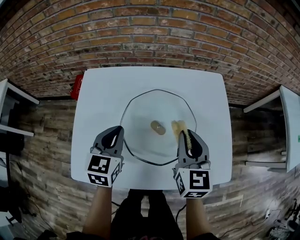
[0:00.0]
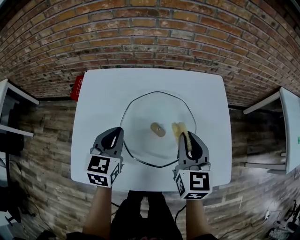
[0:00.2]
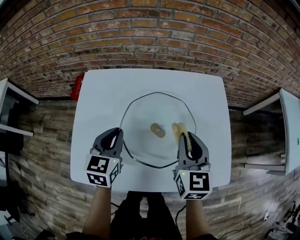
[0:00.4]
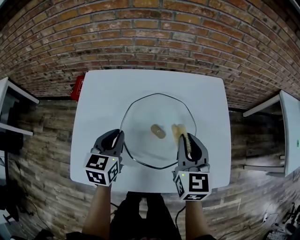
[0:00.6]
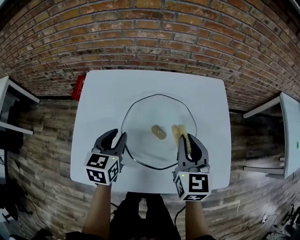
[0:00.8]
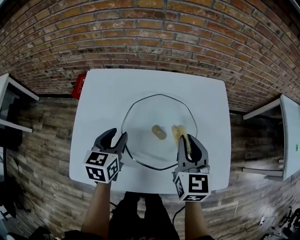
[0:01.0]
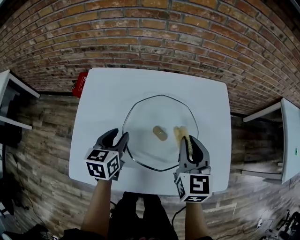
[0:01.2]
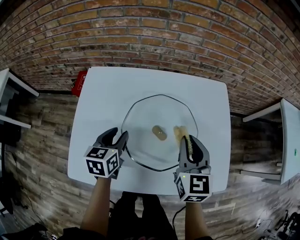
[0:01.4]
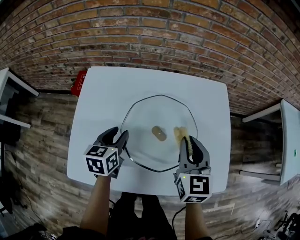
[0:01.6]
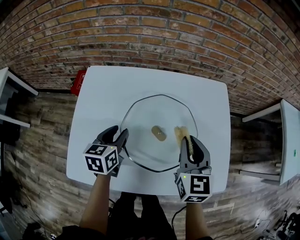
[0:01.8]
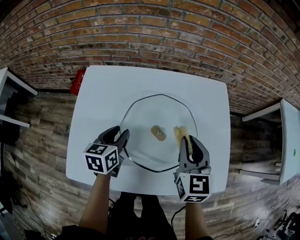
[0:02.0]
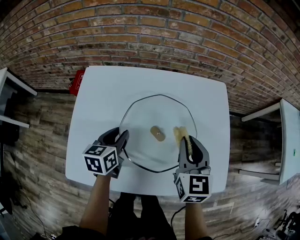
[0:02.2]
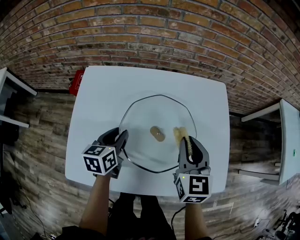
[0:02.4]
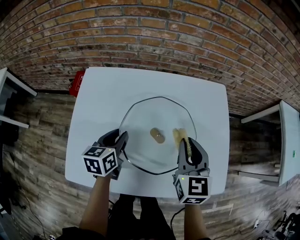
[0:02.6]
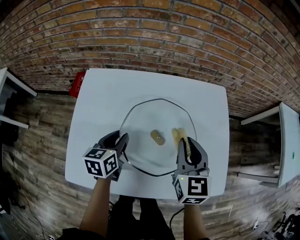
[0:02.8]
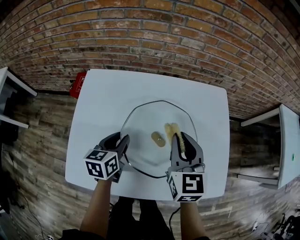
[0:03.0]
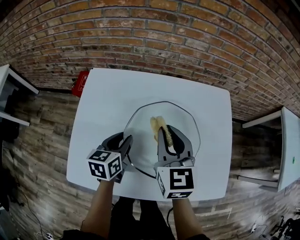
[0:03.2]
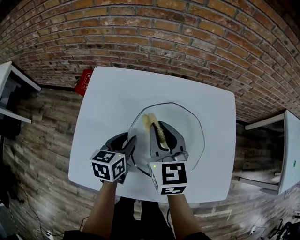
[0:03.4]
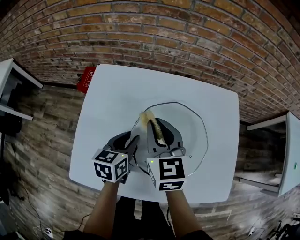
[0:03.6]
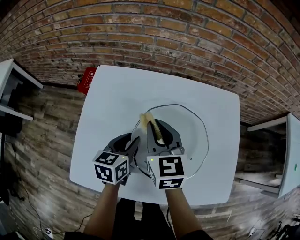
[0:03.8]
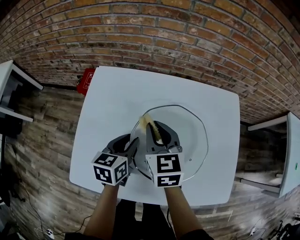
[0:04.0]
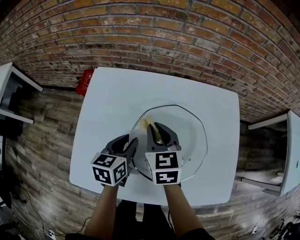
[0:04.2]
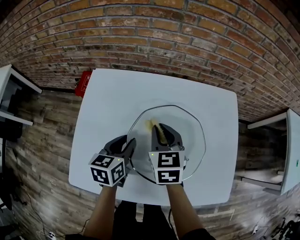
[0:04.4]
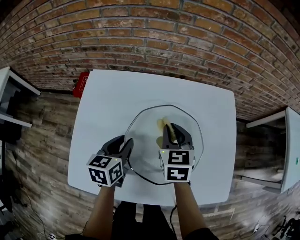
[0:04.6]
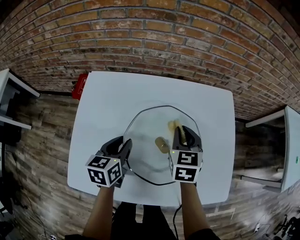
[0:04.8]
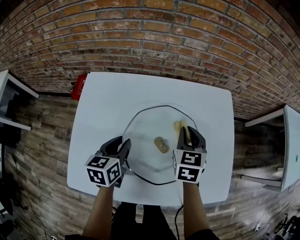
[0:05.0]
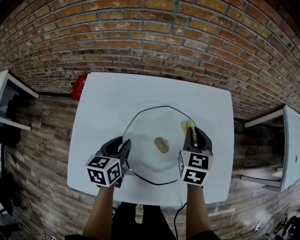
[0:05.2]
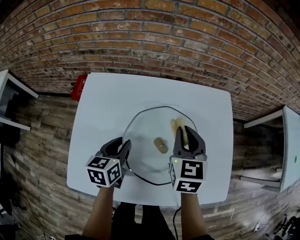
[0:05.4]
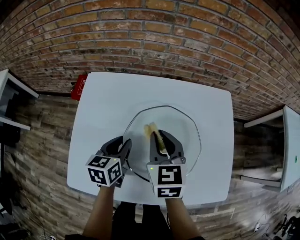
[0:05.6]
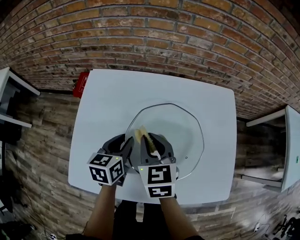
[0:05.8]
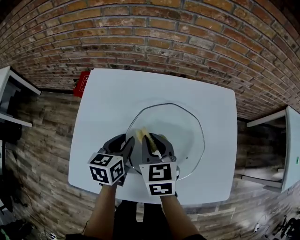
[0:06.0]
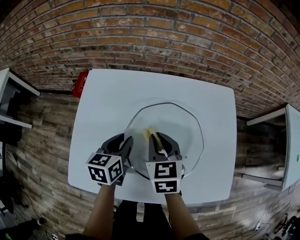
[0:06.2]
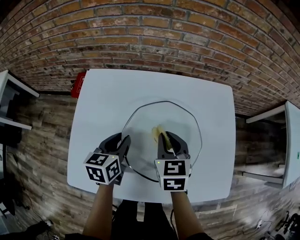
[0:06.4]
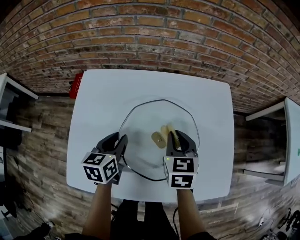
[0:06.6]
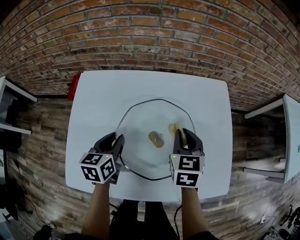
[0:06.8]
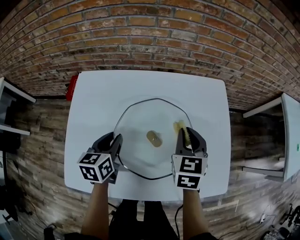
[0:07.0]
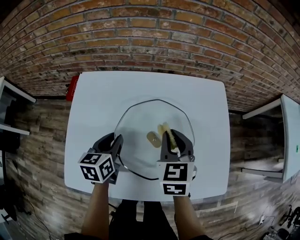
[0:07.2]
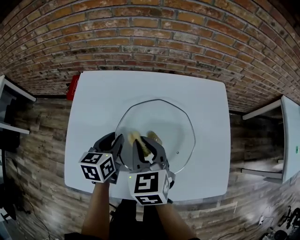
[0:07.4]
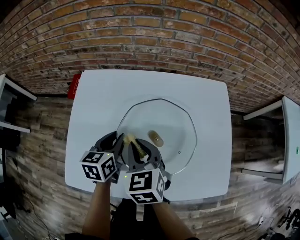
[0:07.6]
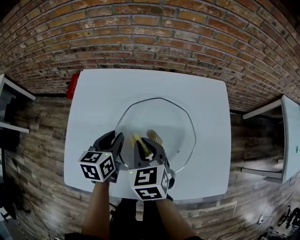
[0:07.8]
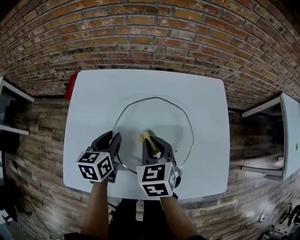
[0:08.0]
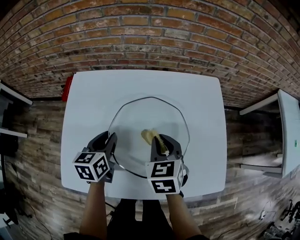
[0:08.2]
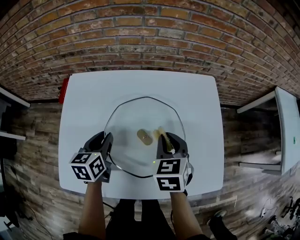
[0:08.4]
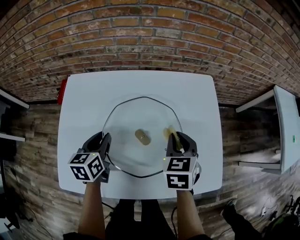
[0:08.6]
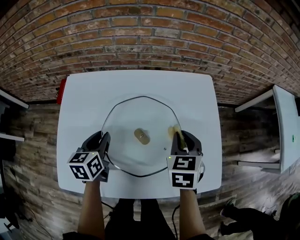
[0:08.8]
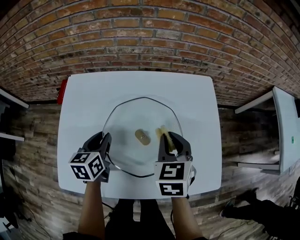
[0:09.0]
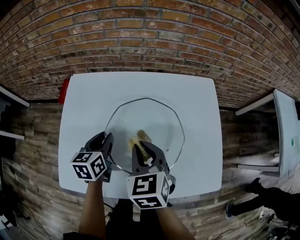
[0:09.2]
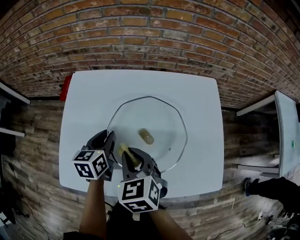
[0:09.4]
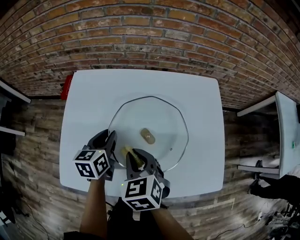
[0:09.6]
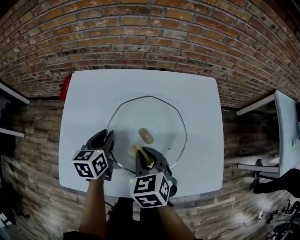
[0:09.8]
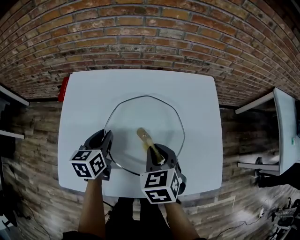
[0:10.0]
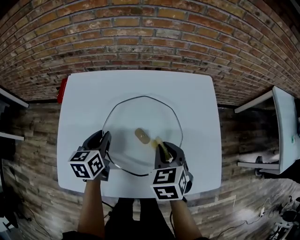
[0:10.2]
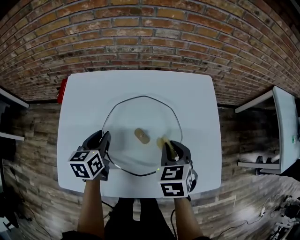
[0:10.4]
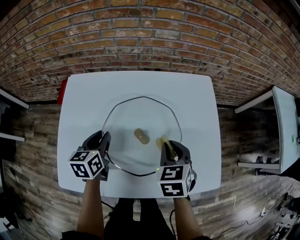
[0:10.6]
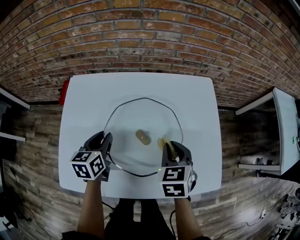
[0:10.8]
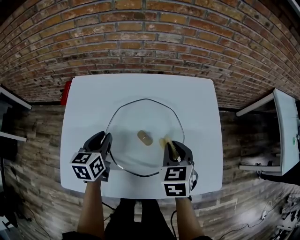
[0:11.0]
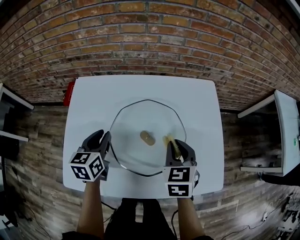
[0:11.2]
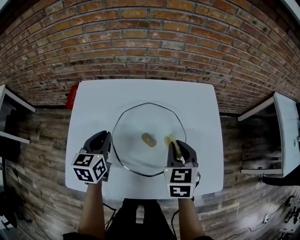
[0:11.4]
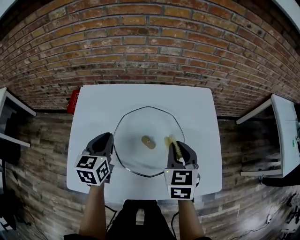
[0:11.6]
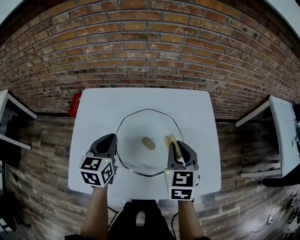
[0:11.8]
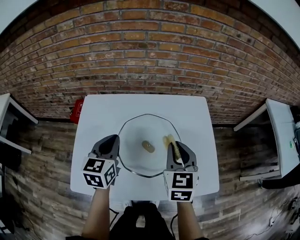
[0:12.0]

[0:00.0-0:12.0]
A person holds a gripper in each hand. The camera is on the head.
0:00.0 to 0:01.6: The left gripper is displaced downward by roughly 5 cm, swivels some 20 degrees, and opens up.
0:01.6 to 0:03.0: The grippers make only small movements.
0:03.0 to 0:04.4: The right gripper goes some 15 cm to the left, downward and forward.
0:04.4 to 0:06.0: The right gripper moves some 15 cm to the right and comes back.
0:06.0 to 0:07.6: The right gripper goes to the right and returns, about 15 cm each way.
0:07.6 to 0:09.0: The right gripper travels to the right by roughly 15 cm.
0:09.0 to 0:10.4: The right gripper reaches roughly 15 cm to the left, then returns.
0:10.4 to 0:12.0: The grippers both shift upward by some 15 cm. The left gripper swivels about 20 degrees, and closes its fingers. The right gripper turns by approximately 30 degrees.

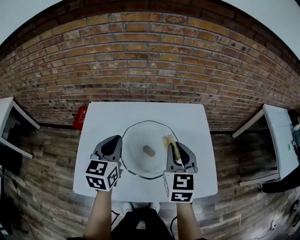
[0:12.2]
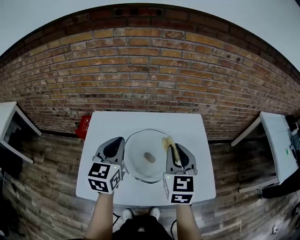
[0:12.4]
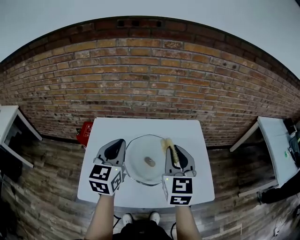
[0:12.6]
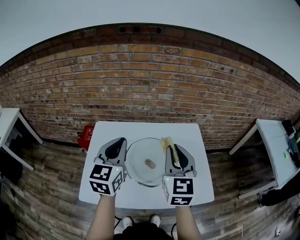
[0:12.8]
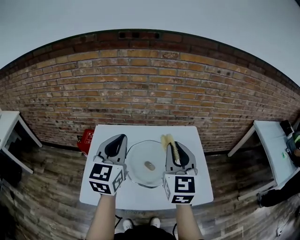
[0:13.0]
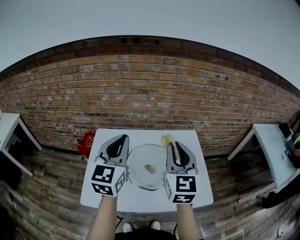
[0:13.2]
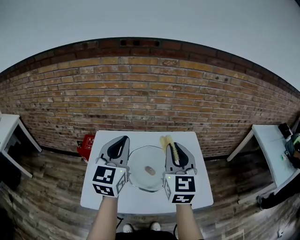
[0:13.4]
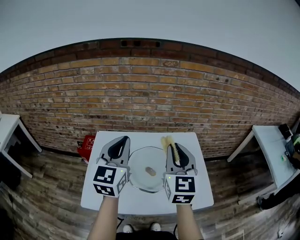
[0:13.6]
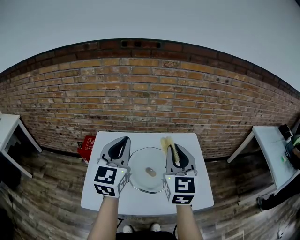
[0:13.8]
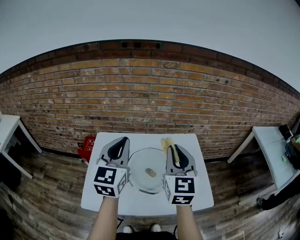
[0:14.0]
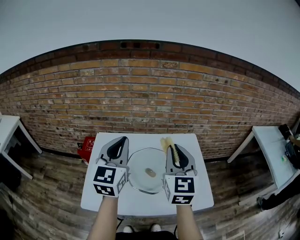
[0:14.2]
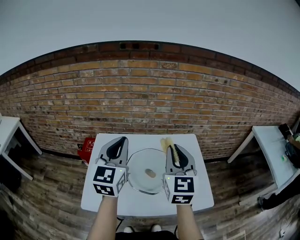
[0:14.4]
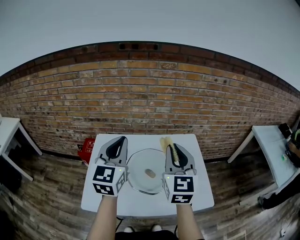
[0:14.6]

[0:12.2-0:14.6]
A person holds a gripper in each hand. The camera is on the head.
0:12.2 to 0:13.4: The grippers both shift upward by roughly 15 cm. The left gripper turns by about 20 degrees.
0:13.4 to 0:14.6: The two grippers keep their place.

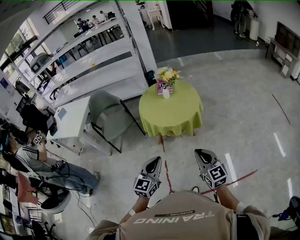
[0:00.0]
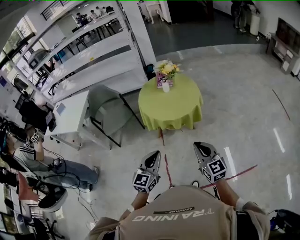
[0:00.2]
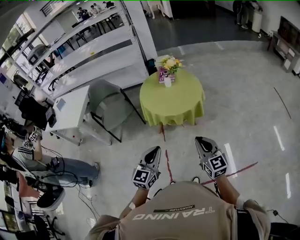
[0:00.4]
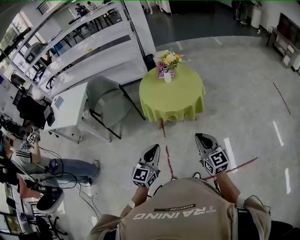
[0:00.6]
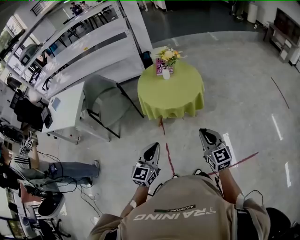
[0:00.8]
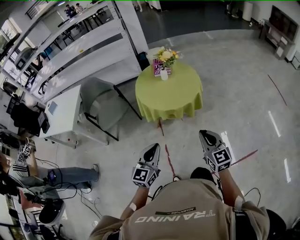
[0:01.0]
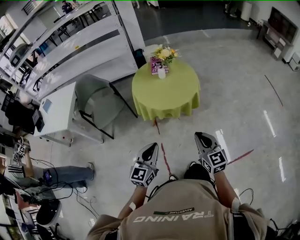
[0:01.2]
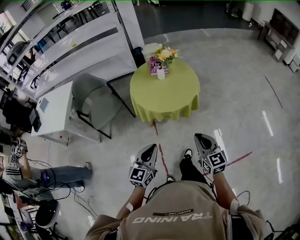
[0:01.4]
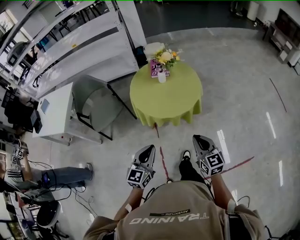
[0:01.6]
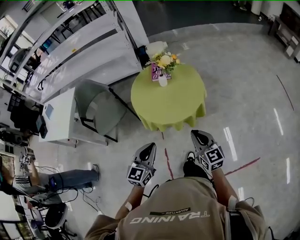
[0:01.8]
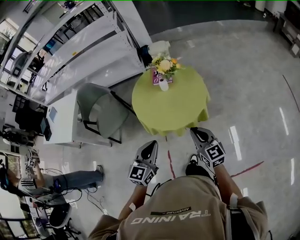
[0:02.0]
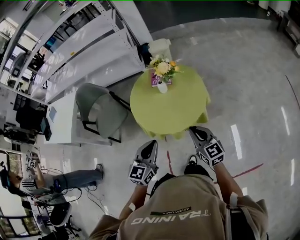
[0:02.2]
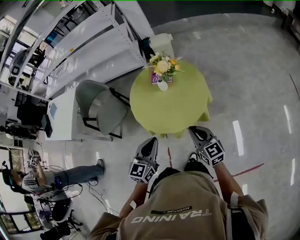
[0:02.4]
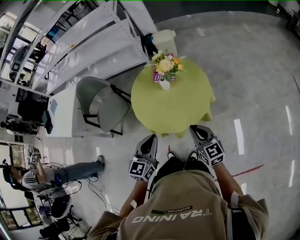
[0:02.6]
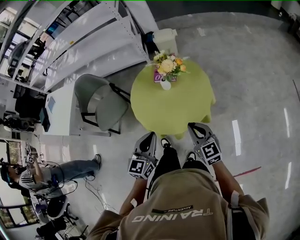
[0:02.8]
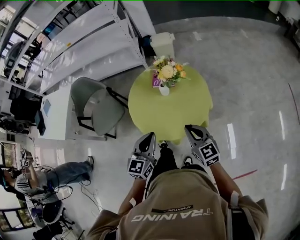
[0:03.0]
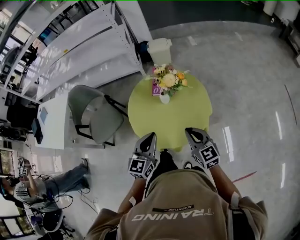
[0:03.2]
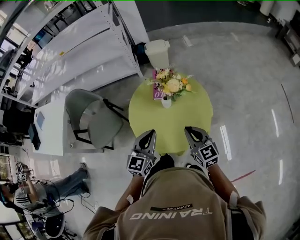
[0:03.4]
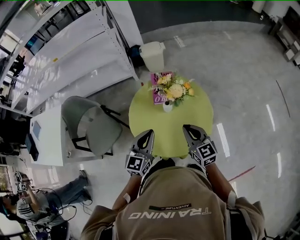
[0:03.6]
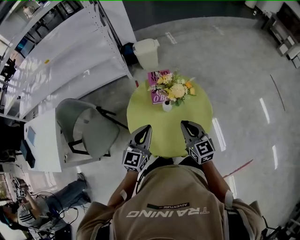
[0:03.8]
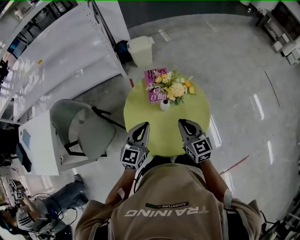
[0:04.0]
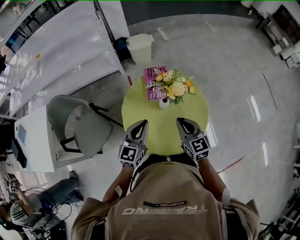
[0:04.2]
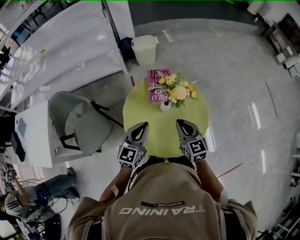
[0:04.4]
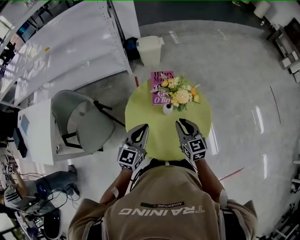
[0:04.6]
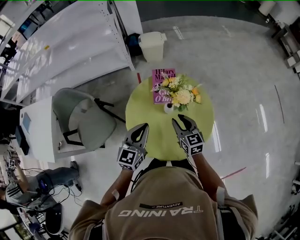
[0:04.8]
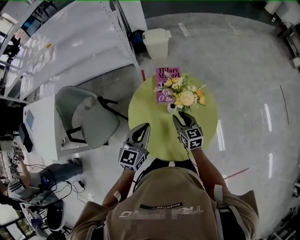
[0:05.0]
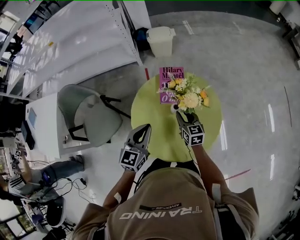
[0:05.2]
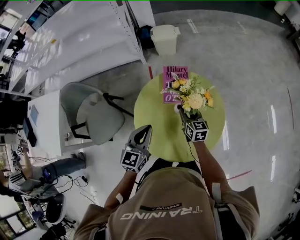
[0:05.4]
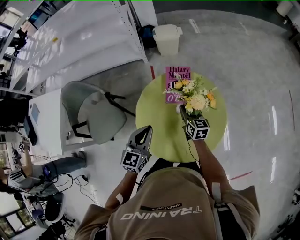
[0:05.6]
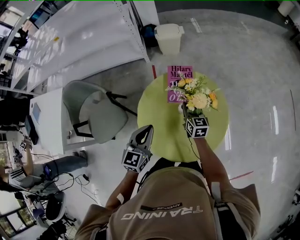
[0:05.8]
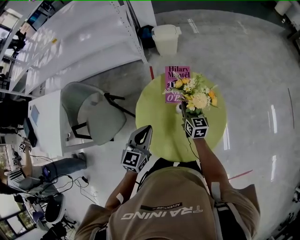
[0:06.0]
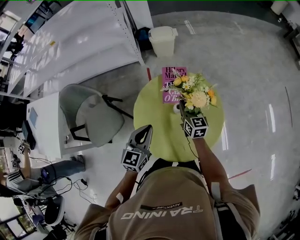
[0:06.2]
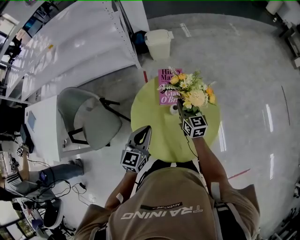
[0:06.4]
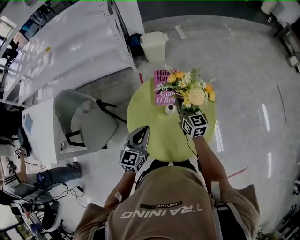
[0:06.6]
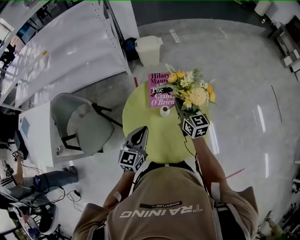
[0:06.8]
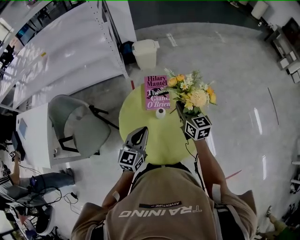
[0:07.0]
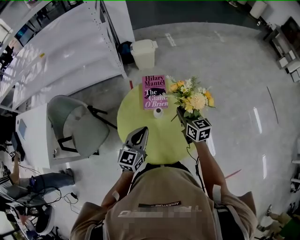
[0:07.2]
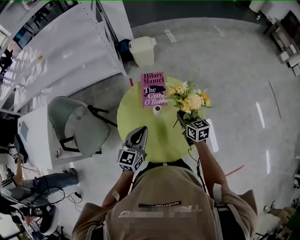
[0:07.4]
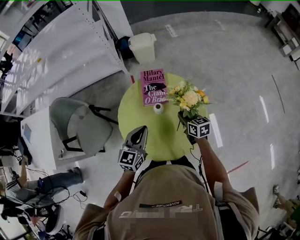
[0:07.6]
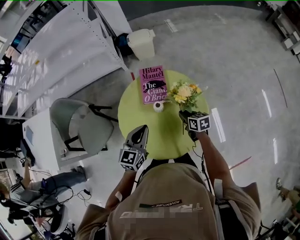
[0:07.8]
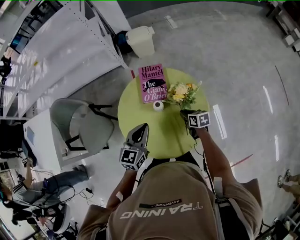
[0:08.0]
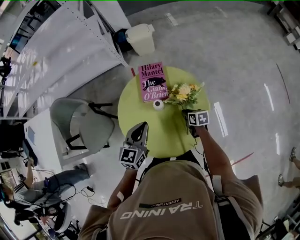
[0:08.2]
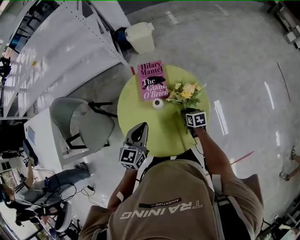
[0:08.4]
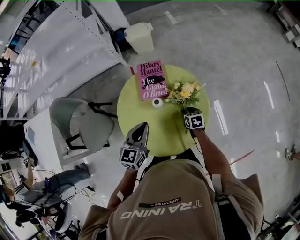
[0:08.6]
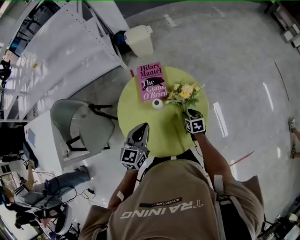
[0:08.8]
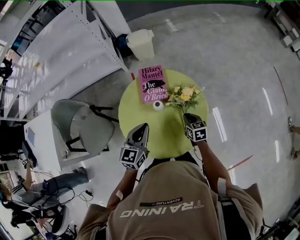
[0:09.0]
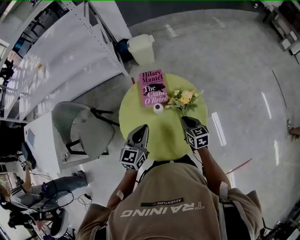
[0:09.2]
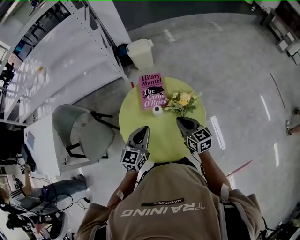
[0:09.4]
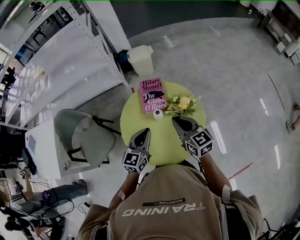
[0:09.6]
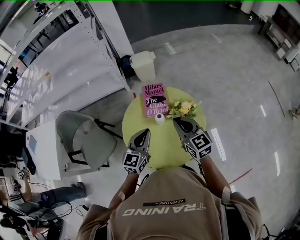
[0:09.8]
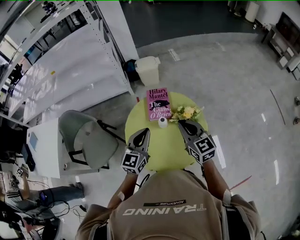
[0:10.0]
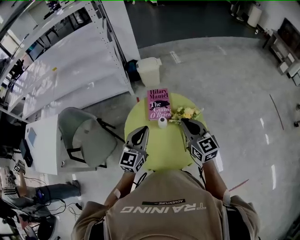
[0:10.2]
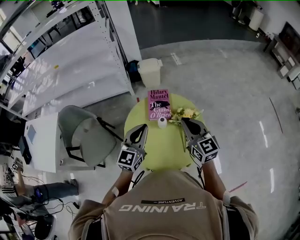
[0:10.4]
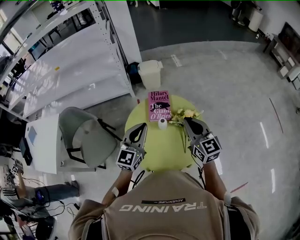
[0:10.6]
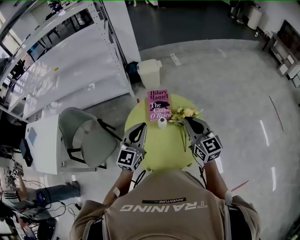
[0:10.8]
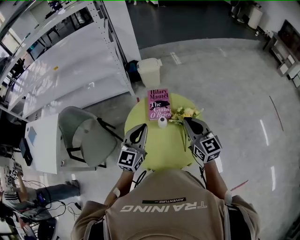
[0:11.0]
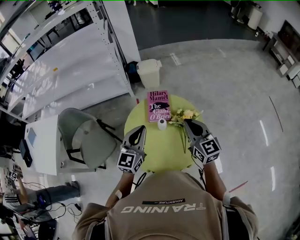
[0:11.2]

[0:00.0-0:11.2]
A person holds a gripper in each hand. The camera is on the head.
0:00.0 to 0:01.6: The grippers both shift forward by about 15 cm.
0:01.6 to 0:03.2: The grippers both shift forward by some 30 cm.
0:03.2 to 0:04.8: The left gripper heads forward and to the left, covering some 20 cm; the right gripper heads forward, to the left and downward, covering approximately 20 cm, and opens its fingers.
0:04.8 to 0:06.4: The right gripper shifts approximately 10 cm forward, and closes up.
0:06.4 to 0:08.0: The left gripper travels to the right by some 10 cm; the right gripper moves downward, to the right and backward, roughly 20 cm, and turns by about 40 degrees.
0:08.0 to 0:09.6: The right gripper moves upward, about 25 cm, turns by roughly 40 degrees, and opens, then closes again.
0:09.6 to 0:11.2: The two grippers go some 10 cm upward.
